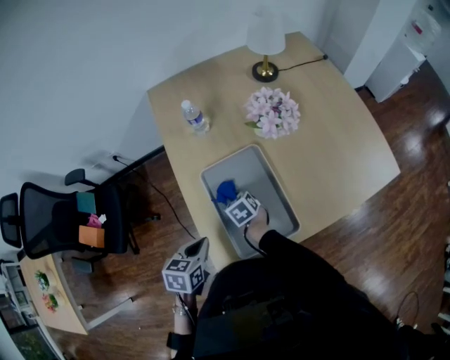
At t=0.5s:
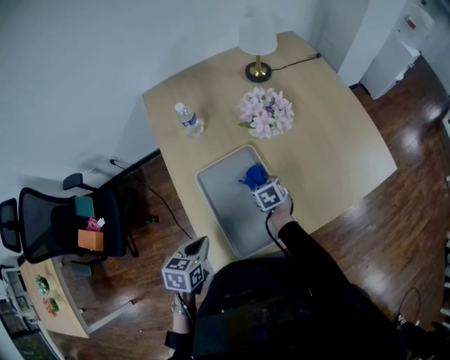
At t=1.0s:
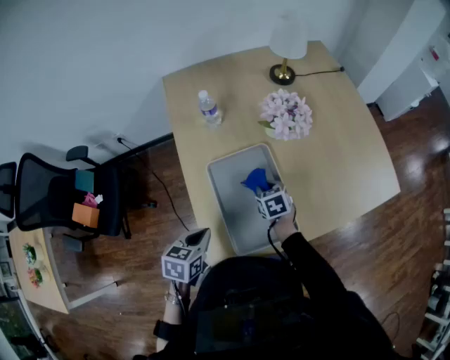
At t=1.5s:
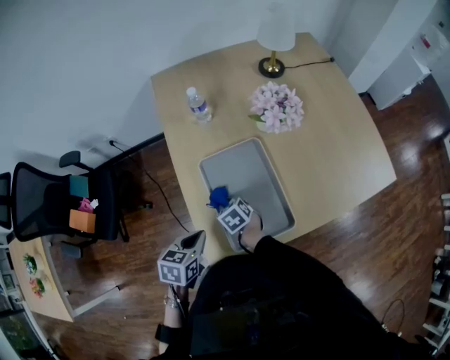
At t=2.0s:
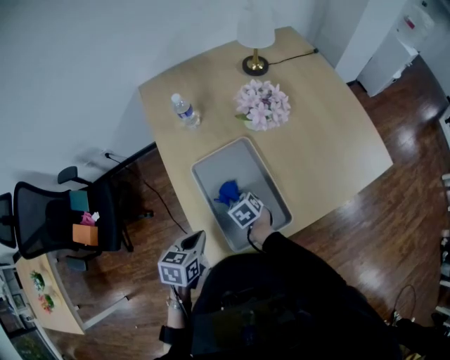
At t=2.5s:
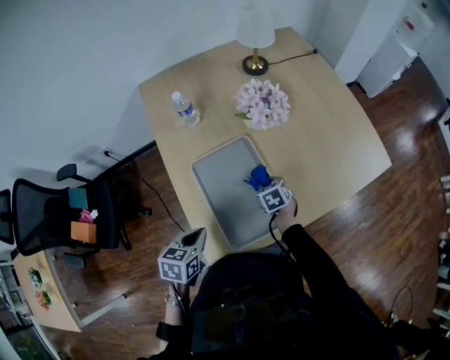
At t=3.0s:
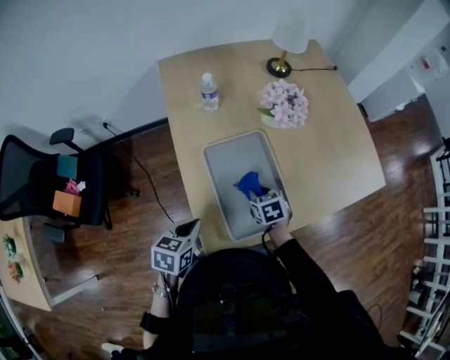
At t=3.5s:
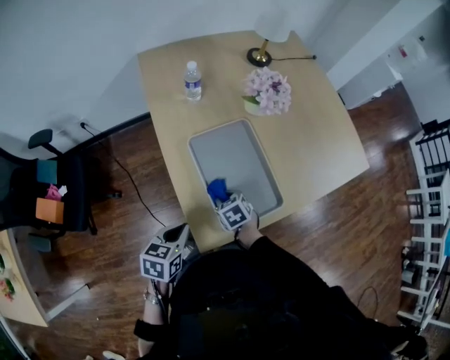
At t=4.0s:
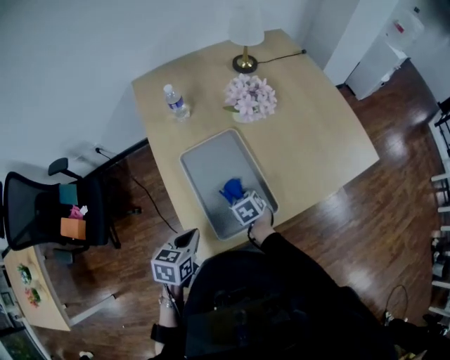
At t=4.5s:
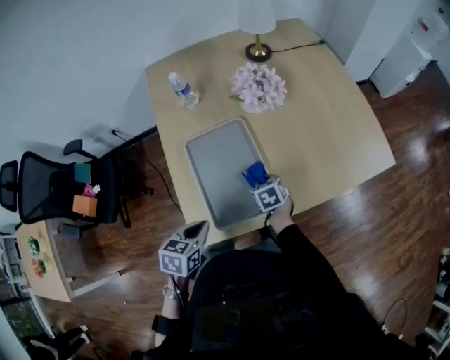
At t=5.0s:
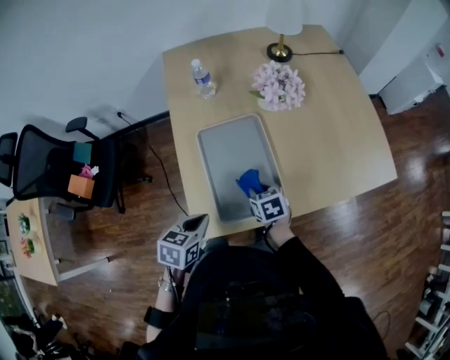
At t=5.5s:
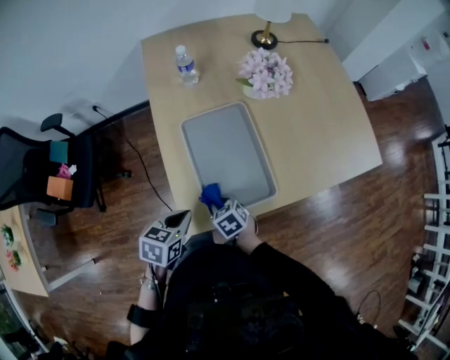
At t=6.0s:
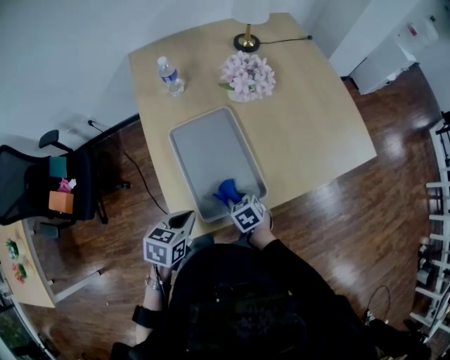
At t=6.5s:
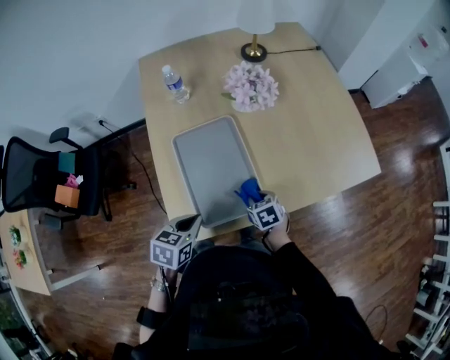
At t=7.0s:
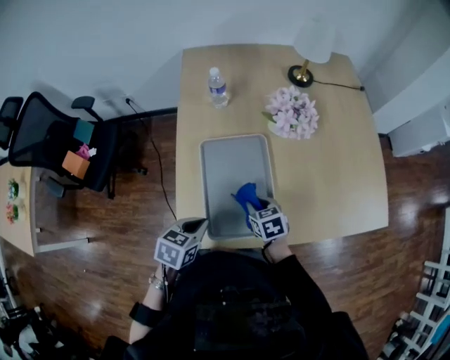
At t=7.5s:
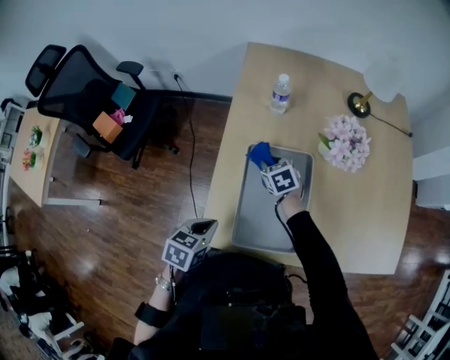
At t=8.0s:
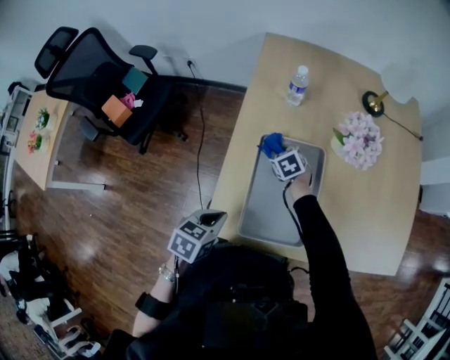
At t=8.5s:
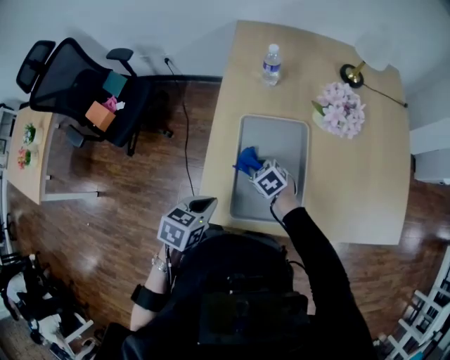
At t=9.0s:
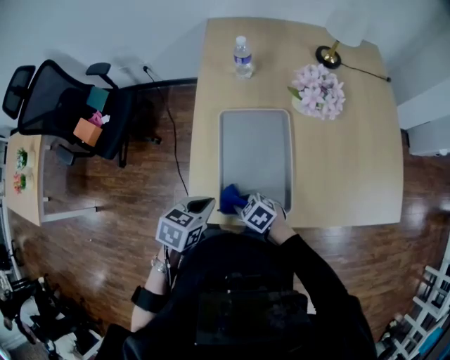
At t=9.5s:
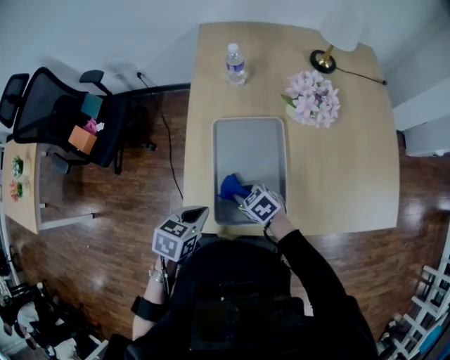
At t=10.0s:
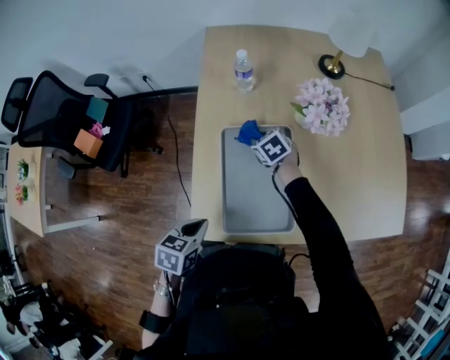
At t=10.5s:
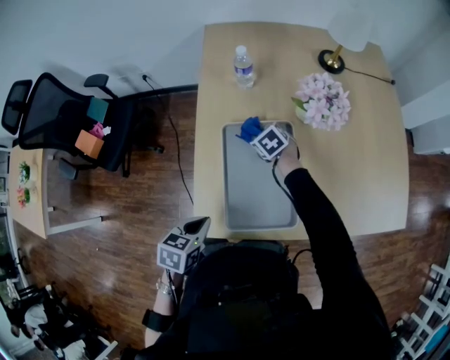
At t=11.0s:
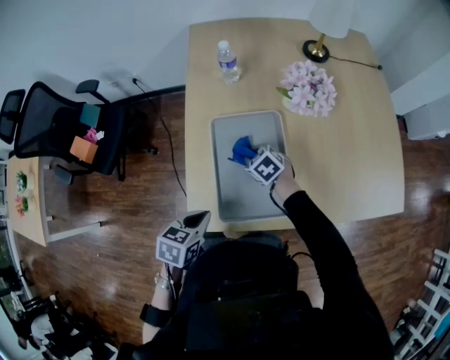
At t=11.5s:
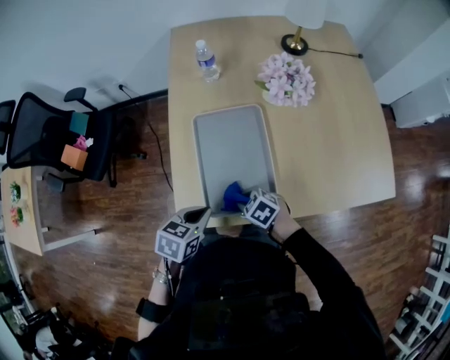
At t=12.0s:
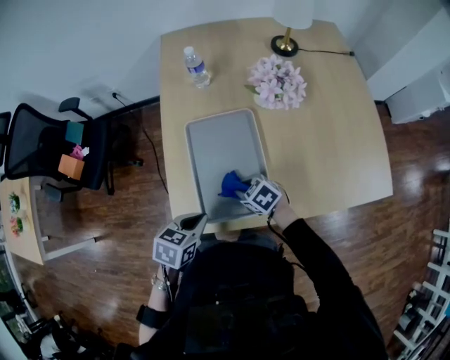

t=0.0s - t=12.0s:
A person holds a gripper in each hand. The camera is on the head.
t=0.0s - t=2.0s: The right gripper moves left and right over approximately 15 cm, changing direction 2 times.
t=2.0s - t=4.0s: The right gripper swings left and right, some 15 cm each way, with 2 reversals.
t=4.0s - t=6.0s: The left gripper swings left and right, about 5 cm each way, with 2 reversals. Meanwhile the right gripper swings left and right, approximately 15 cm each way, with 2 reversals.
t=6.0s - t=8.0s: The right gripper travels forward and to the left by approximately 30 cm, and turns by approximately 30 degrees, while the left gripper turns by roughly 20 degrees.
t=10.0s - t=12.0s: The right gripper ends up about 25 cm from where it was; the left gripper ends up some 5 cm from where it was.

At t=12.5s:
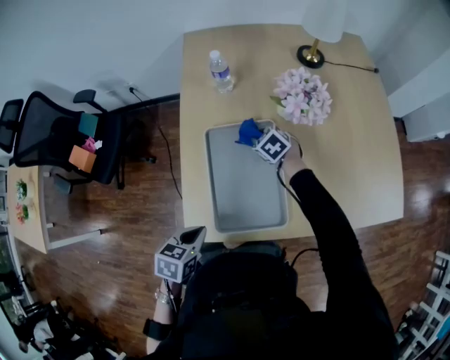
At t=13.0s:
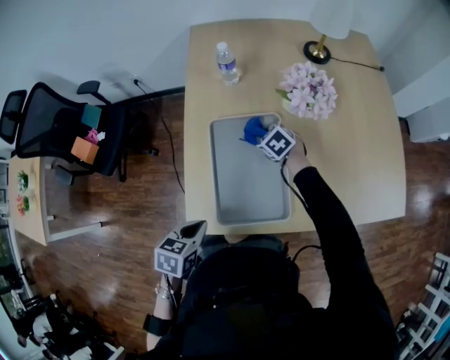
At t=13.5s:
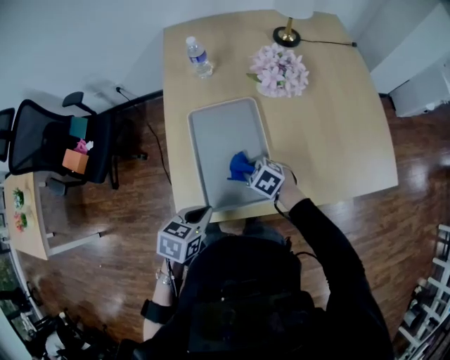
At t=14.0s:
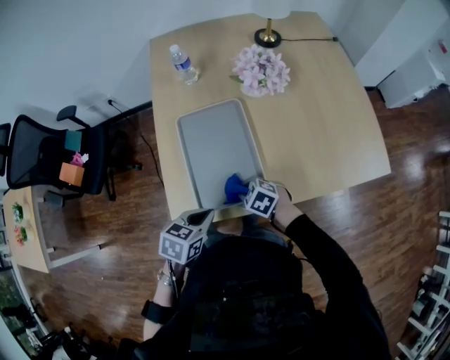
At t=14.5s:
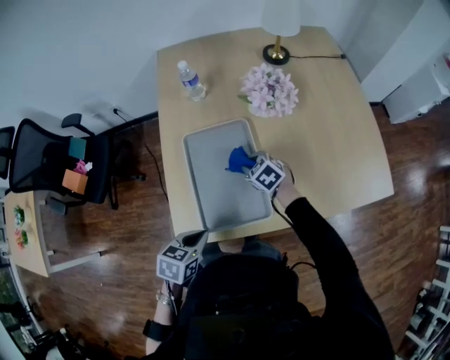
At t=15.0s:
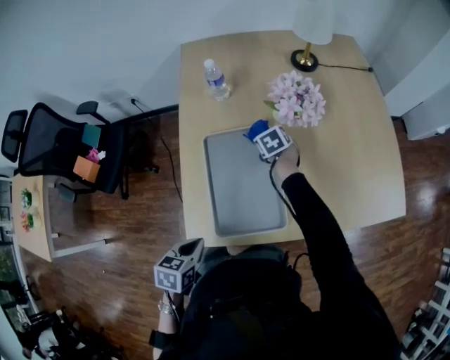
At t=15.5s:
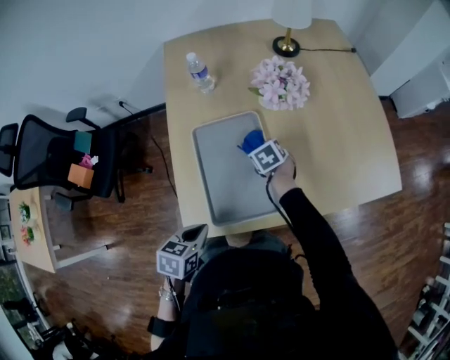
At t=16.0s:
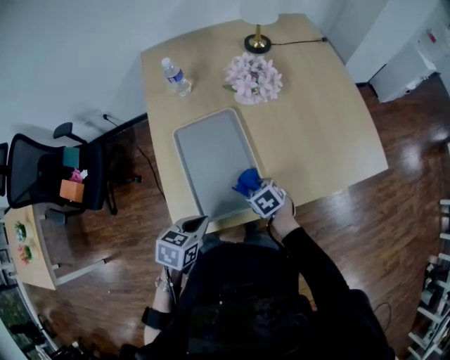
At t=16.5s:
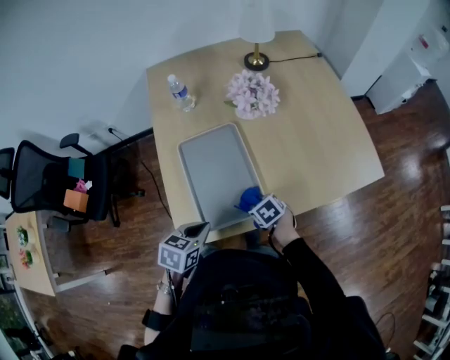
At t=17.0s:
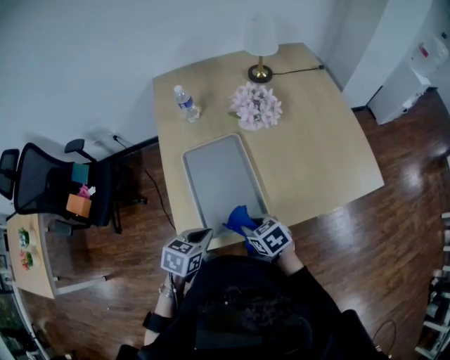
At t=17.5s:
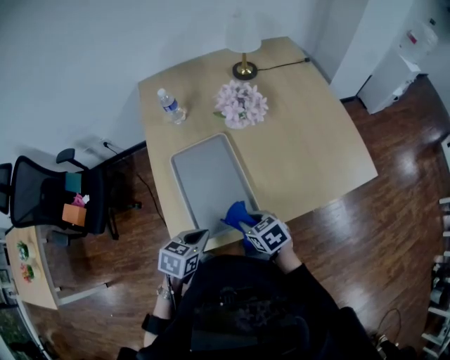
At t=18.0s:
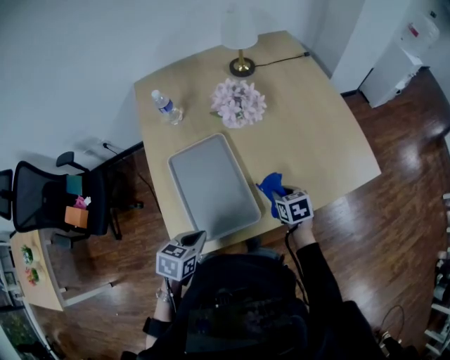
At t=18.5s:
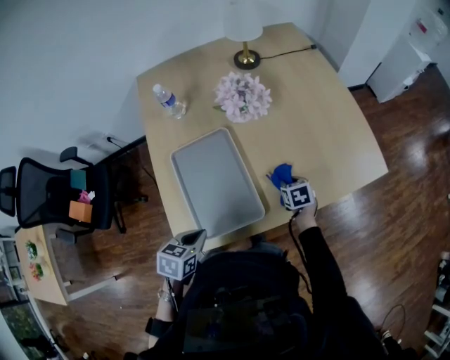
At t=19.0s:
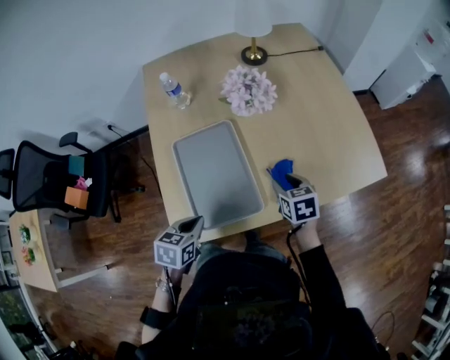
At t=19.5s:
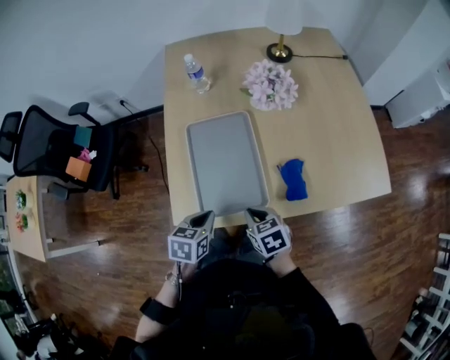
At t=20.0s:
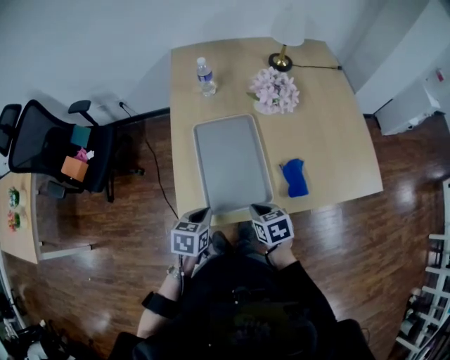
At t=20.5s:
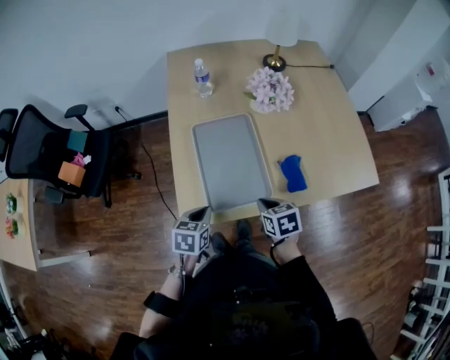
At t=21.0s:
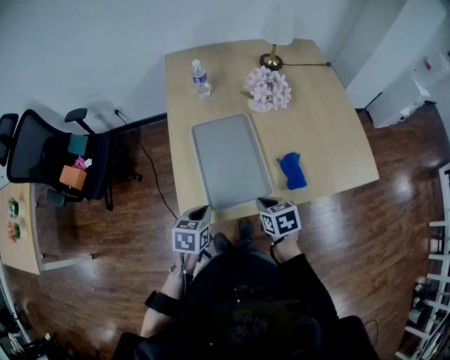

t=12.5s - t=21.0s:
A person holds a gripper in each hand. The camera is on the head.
t=12.5s - t=14.5s: The right gripper shifts roughly 10 cm backward.
t=14.5s - t=16.5s: The right gripper moves backward, some 15 cm, and changes its angle by roughly 30 degrees.
t=16.5s - t=19.0s: The right gripper goes some 20 cm to the right, upward and forward, rotates approximately 30 degrees, and opens.
t=19.0s - t=21.0s: The left gripper ends up about 5 cm from where it was; the right gripper shifts approximately 20 cm to the left and backward, and closes its fingers.

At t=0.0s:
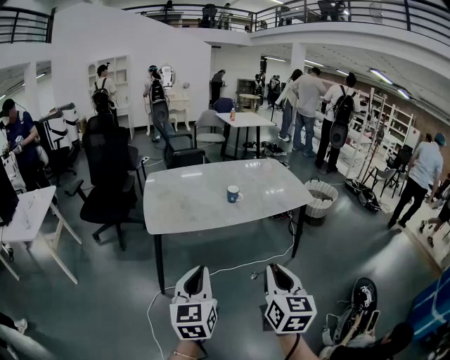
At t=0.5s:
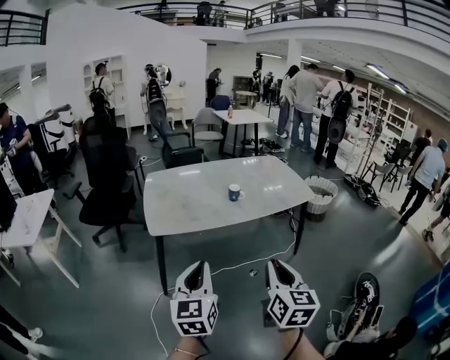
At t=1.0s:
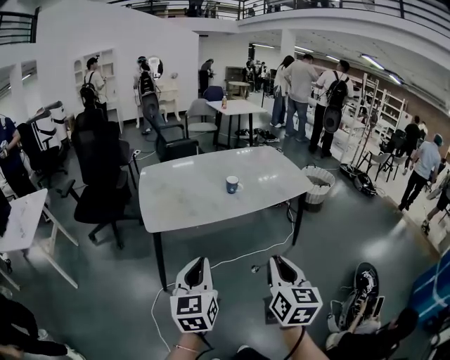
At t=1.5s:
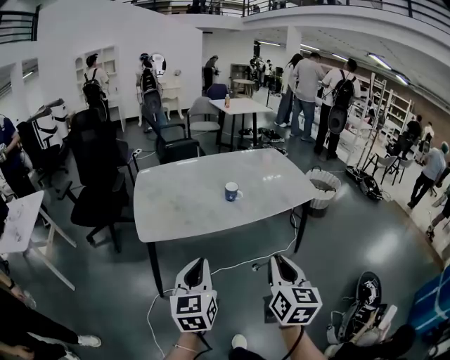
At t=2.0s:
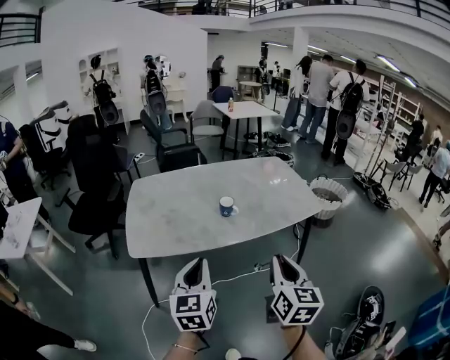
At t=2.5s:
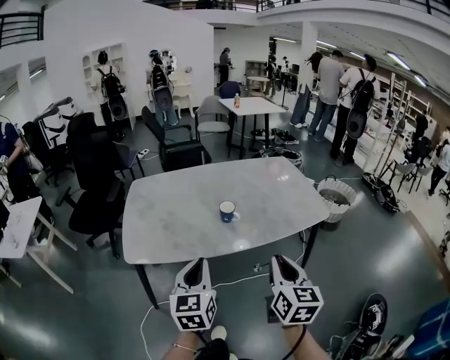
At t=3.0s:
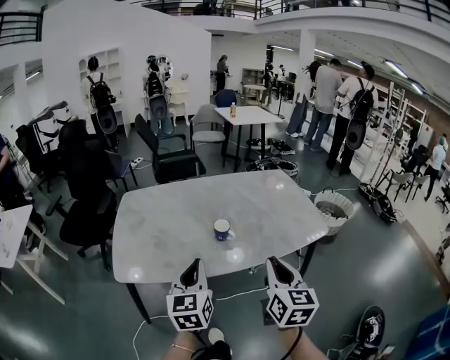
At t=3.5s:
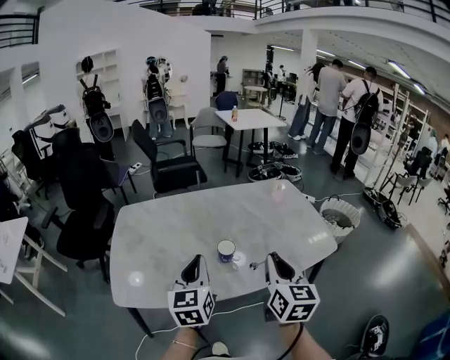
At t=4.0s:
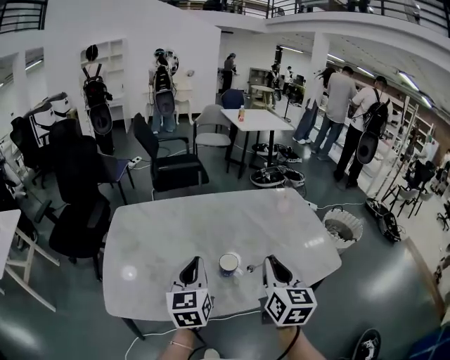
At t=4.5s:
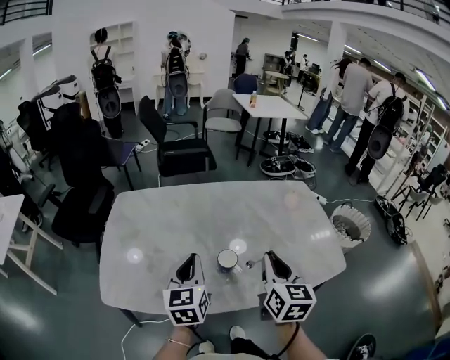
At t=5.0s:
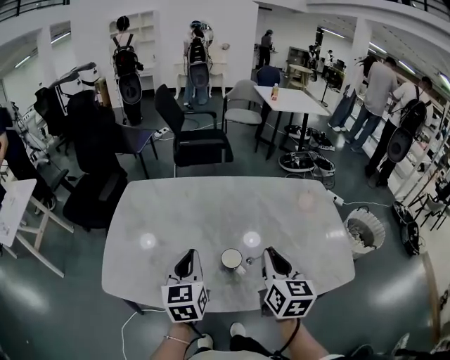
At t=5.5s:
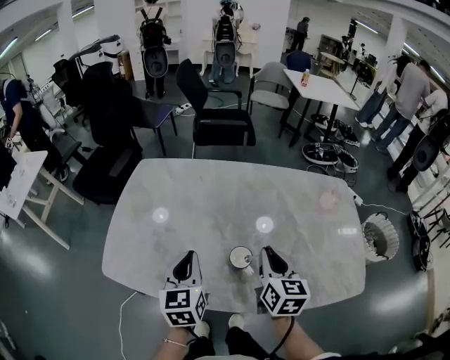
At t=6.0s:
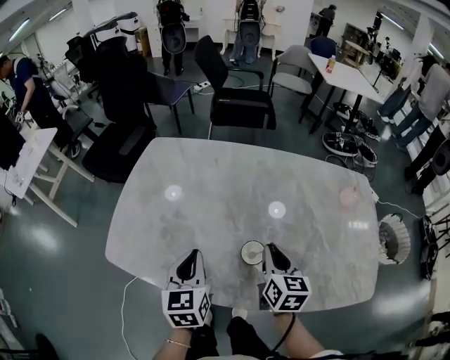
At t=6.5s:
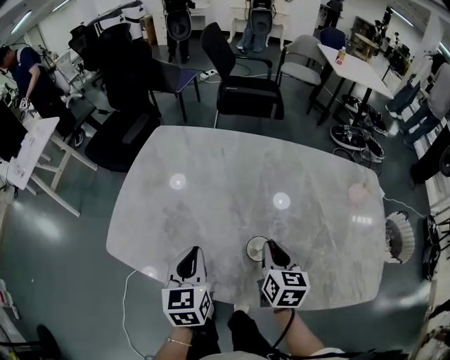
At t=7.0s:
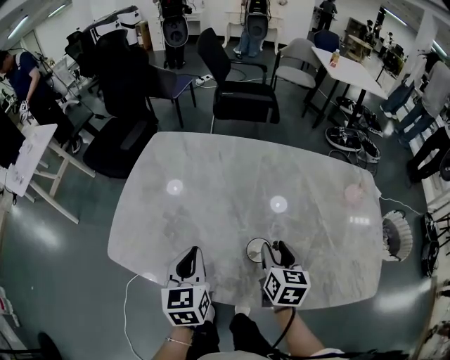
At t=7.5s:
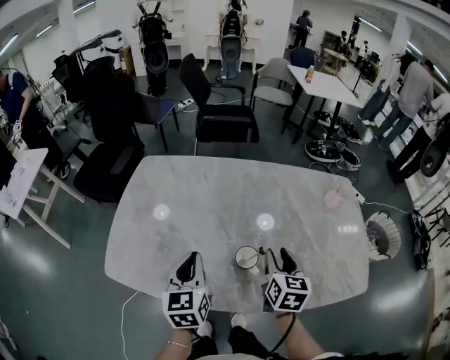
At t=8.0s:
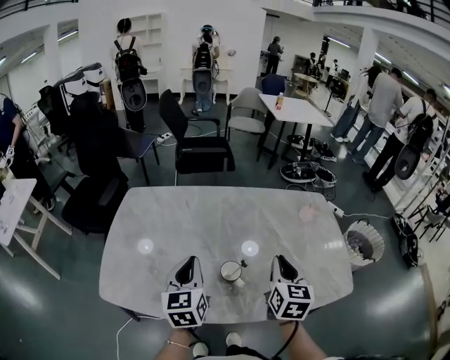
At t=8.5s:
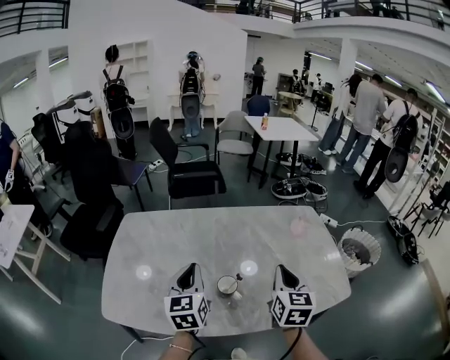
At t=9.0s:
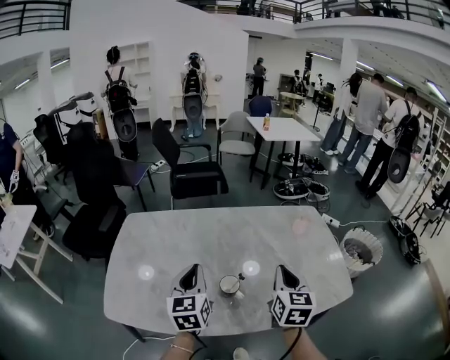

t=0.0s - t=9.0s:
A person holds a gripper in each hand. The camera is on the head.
t=0.0s - t=2.0s: The two grippers go some 20 cm forward.
t=2.0s - t=4.5s: The two grippers go some 30 cm forward.
t=4.5s - t=7.0s: The left gripper heads downward and to the left, covering roughly 10 cm, and changes its angle by approximately 20 degrees. The right gripper moves downward and forward, about 20 cm, turns by some 30 degrees, and opens its fingers.
t=7.0s - t=9.0s: The left gripper shifts some 15 cm upward, to the right and forward; the right gripper heads upward and to the right, covering approximately 20 cm, turns by roughly 30 degrees, and closes.
